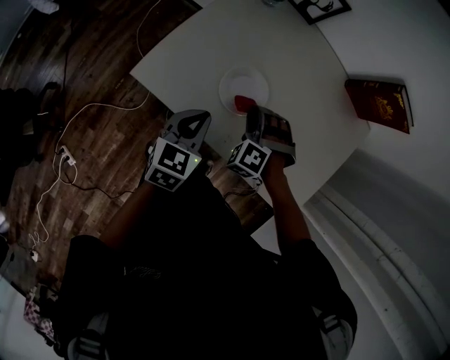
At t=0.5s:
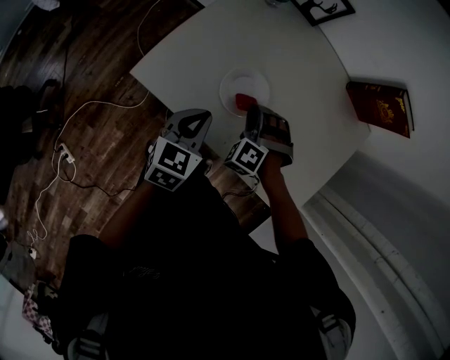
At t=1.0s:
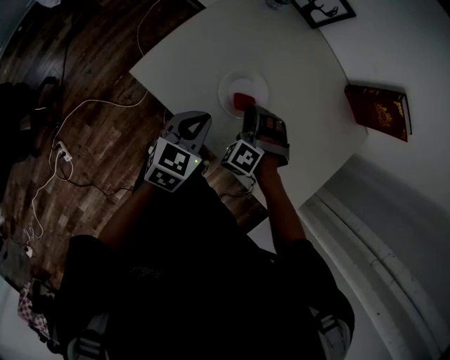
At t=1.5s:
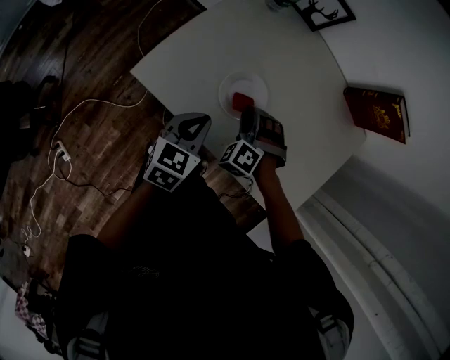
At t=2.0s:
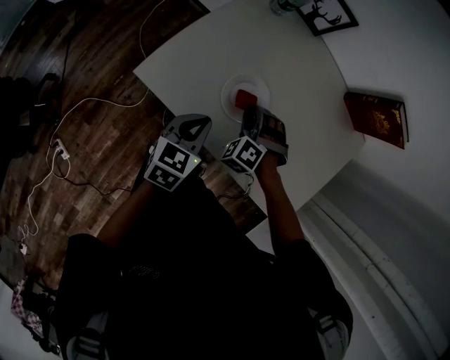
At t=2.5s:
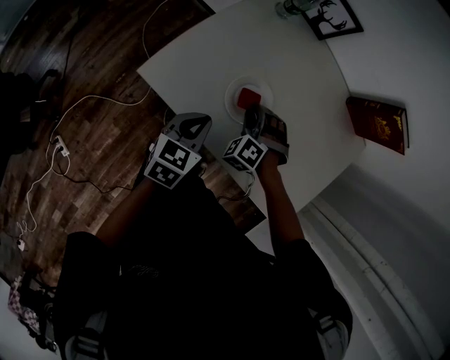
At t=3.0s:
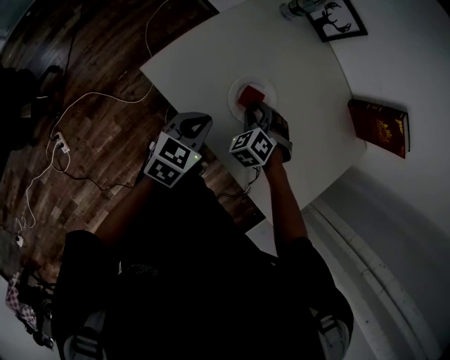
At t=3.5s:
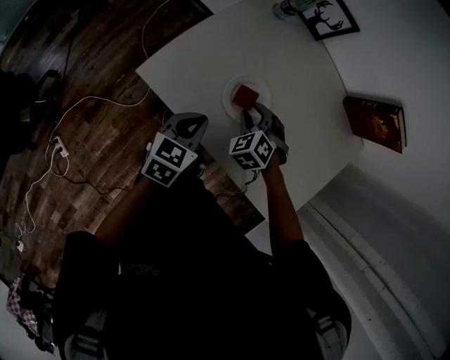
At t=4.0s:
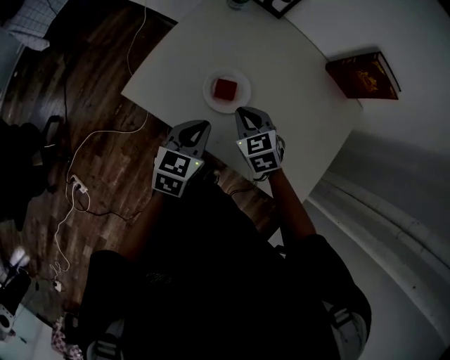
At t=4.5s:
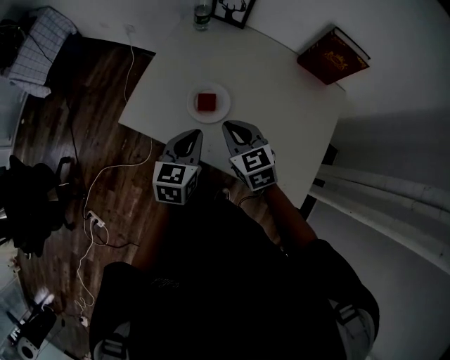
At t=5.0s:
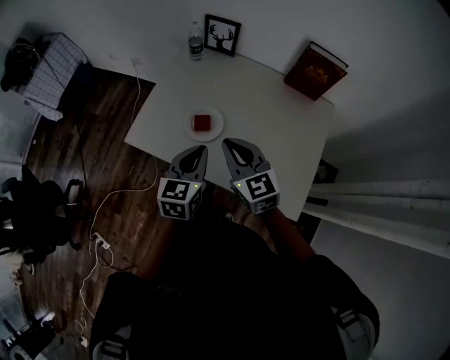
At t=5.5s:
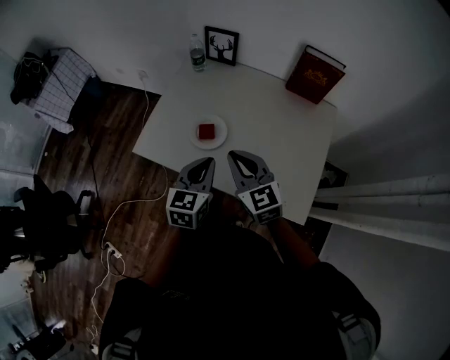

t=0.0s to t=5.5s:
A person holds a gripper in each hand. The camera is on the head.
t=0.0s to t=2.0s: The grippers move only a little.
t=2.0s to t=3.5s: The right gripper swivels approximately 20 degrees.
t=3.5s to t=5.5s: The left gripper moves upward, to the right and backward, some 20 cm. Meanwhile the right gripper goes approximately 25 cm upward and backward, tips its fingers upward by roughly 40 degrees, and closes up.

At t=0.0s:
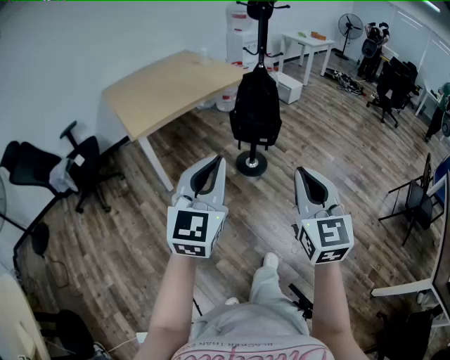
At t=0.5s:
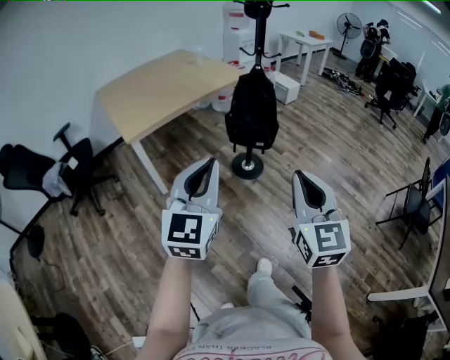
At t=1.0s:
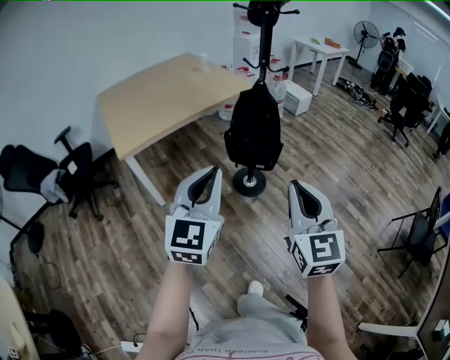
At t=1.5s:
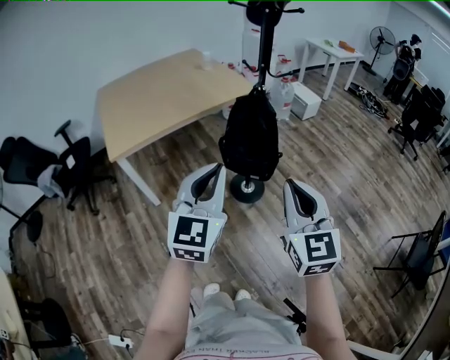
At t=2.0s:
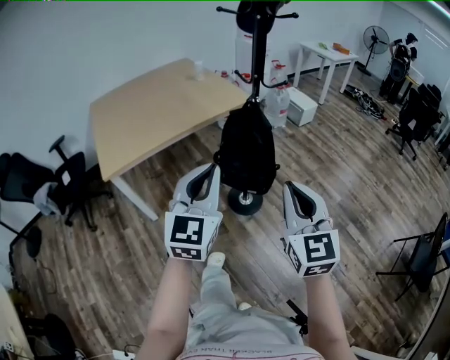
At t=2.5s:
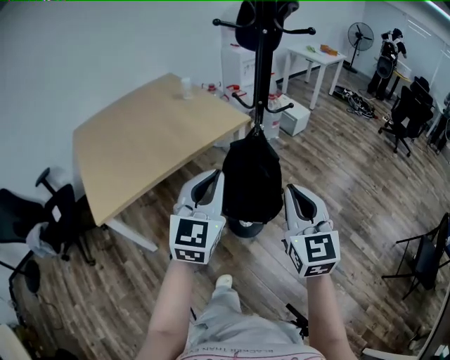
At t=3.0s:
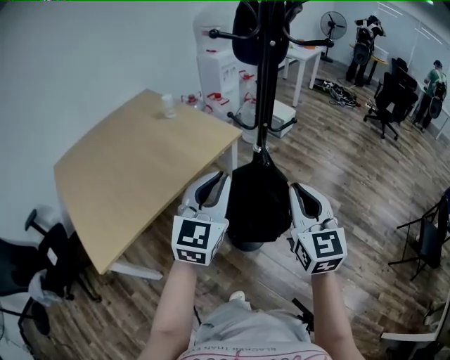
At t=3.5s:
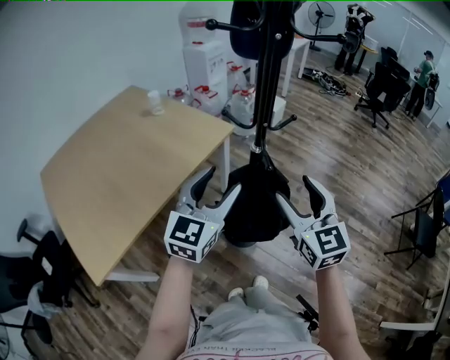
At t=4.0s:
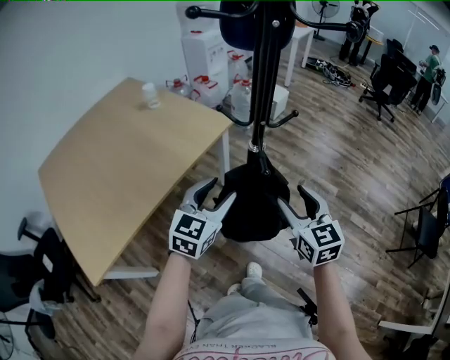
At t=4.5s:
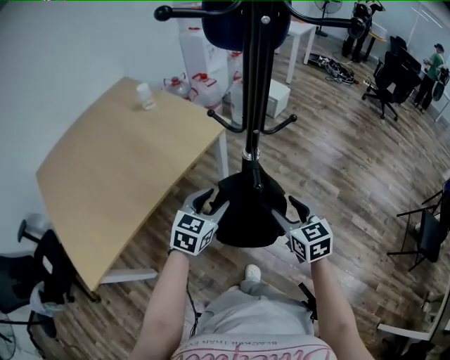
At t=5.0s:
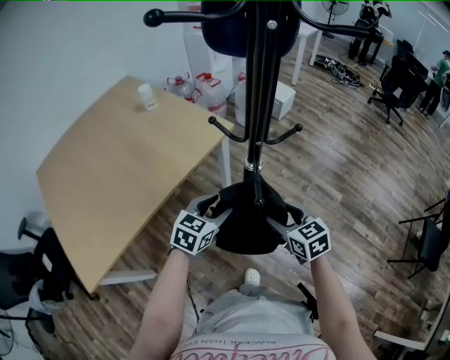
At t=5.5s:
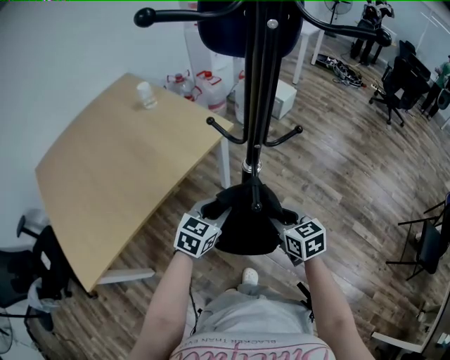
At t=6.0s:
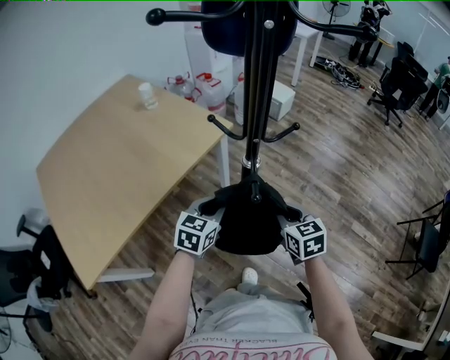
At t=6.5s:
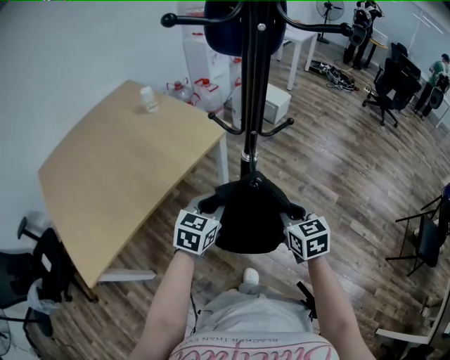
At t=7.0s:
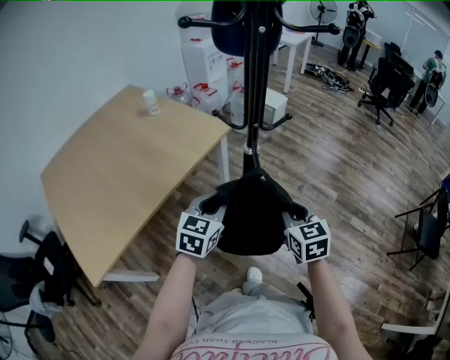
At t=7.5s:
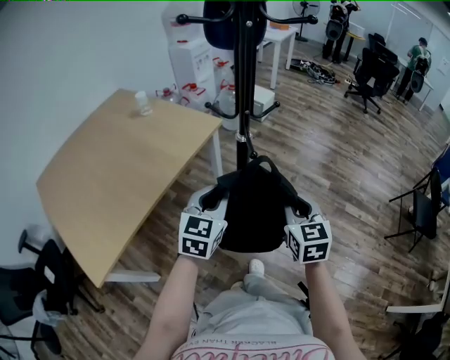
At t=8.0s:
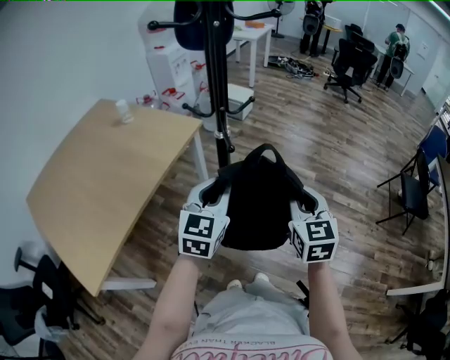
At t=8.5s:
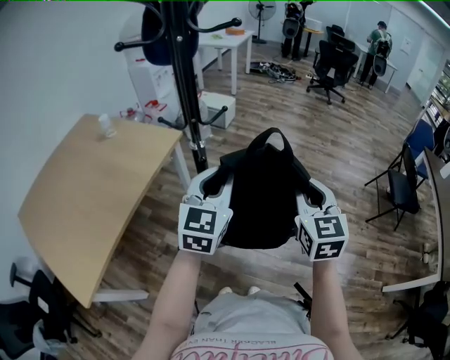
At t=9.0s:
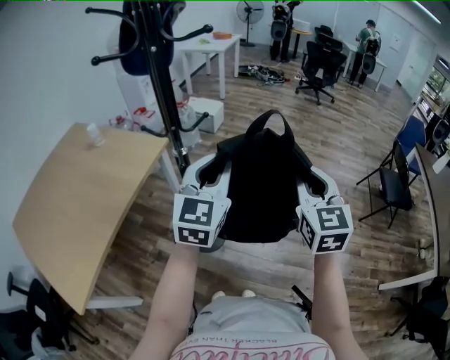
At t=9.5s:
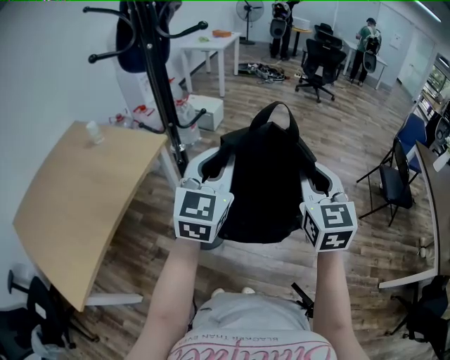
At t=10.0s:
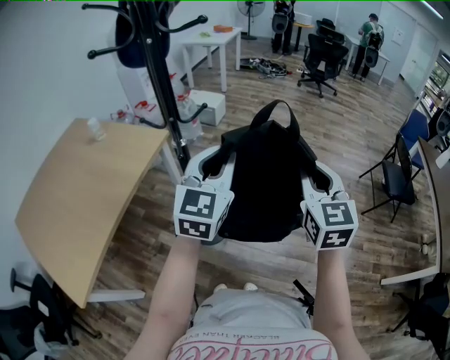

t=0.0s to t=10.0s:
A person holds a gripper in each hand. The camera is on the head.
t=0.0s to t=2.0s: The two grippers go approximately 30 cm forward.
t=2.0s to t=4.0s: Both grippers travel together forward, about 30 cm. The right gripper turns by about 20 degrees, and opens up; the left gripper rotates roughly 40 degrees, and opens its fingers.
t=4.0s to t=6.0s: The two grippers go about 10 cm downward and forward. The right gripper closes up, while the left gripper closes.
t=6.0s to t=8.0s: The left gripper moves upward, backward and to the right, approximately 20 cm, and swivels some 20 degrees, while the right gripper heads backward, upward and to the right, covering approximately 20 cm, and changes its angle by approximately 30 degrees.
t=8.0s to t=10.0s: Both grippers move to the right and upward, roughly 15 cm.

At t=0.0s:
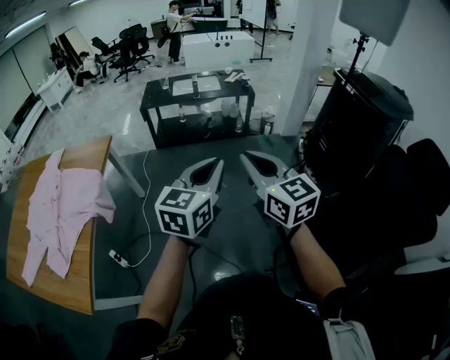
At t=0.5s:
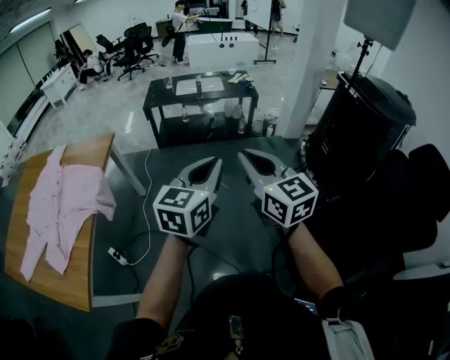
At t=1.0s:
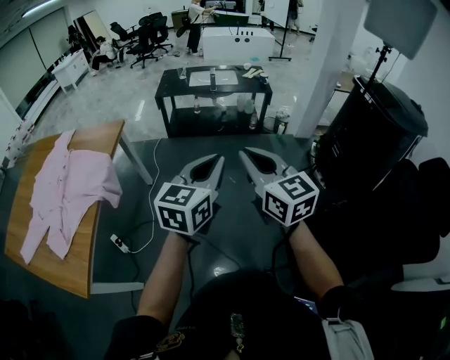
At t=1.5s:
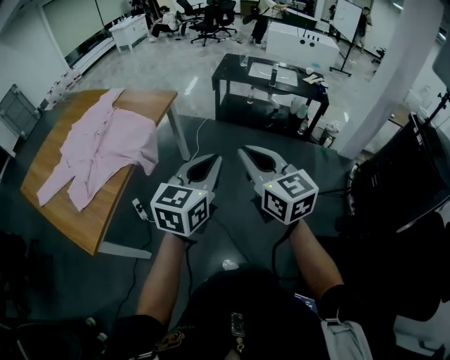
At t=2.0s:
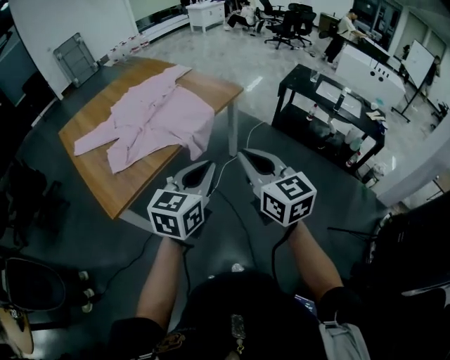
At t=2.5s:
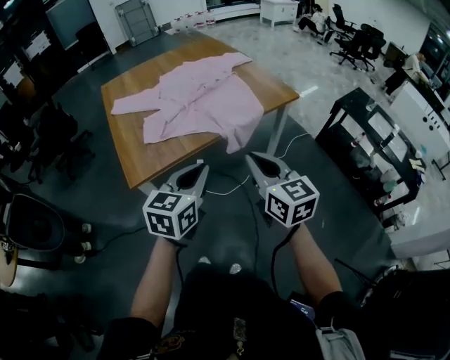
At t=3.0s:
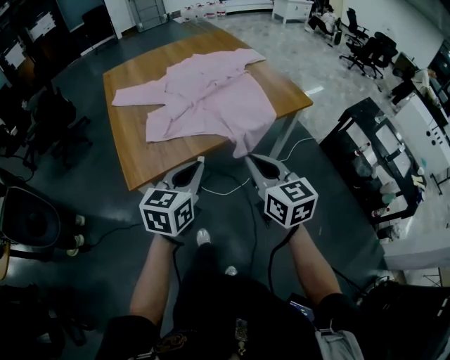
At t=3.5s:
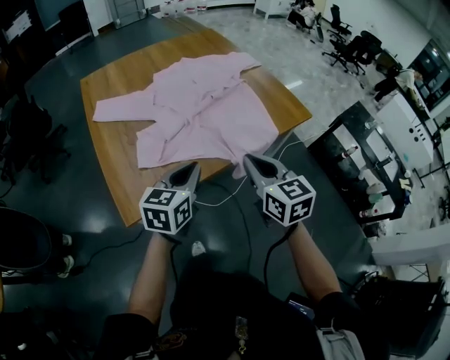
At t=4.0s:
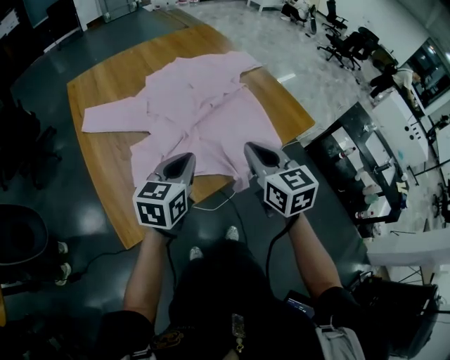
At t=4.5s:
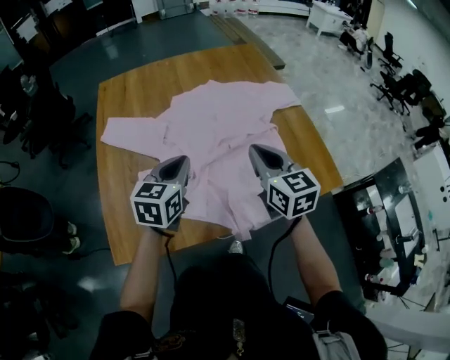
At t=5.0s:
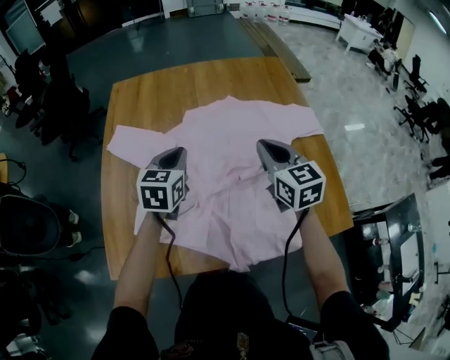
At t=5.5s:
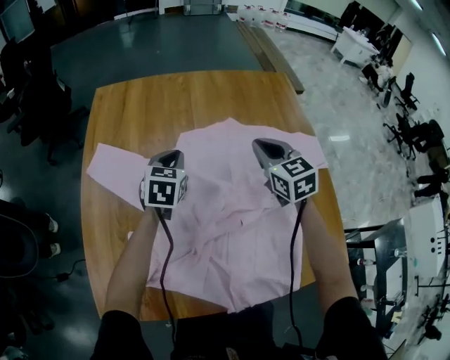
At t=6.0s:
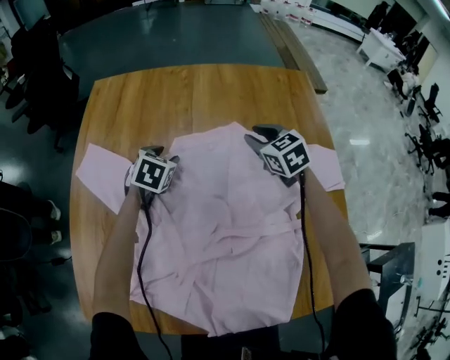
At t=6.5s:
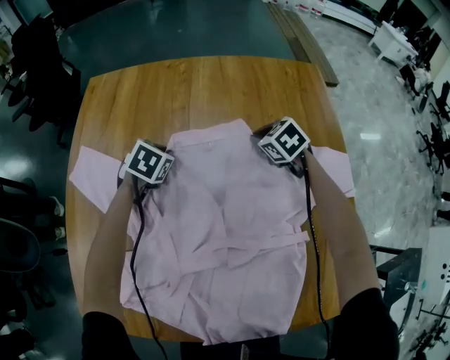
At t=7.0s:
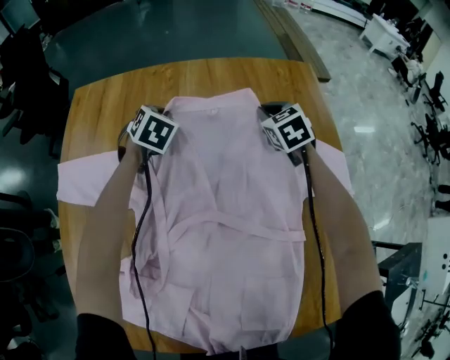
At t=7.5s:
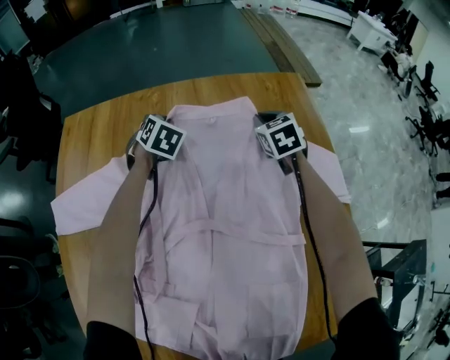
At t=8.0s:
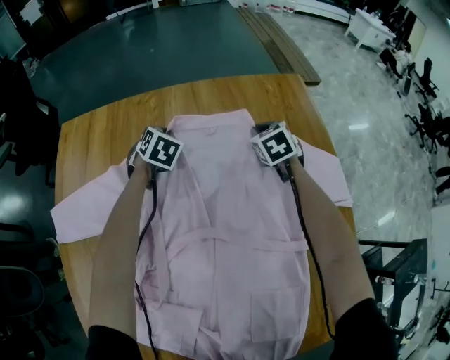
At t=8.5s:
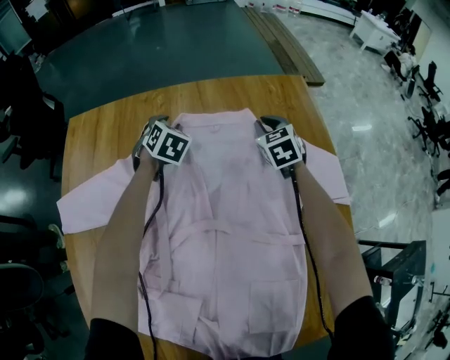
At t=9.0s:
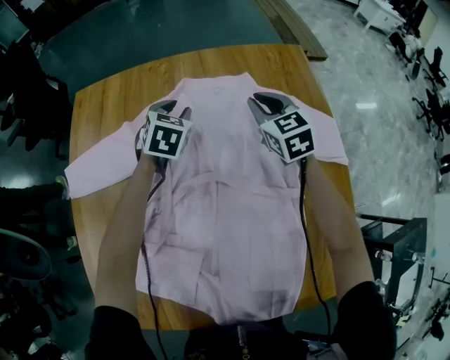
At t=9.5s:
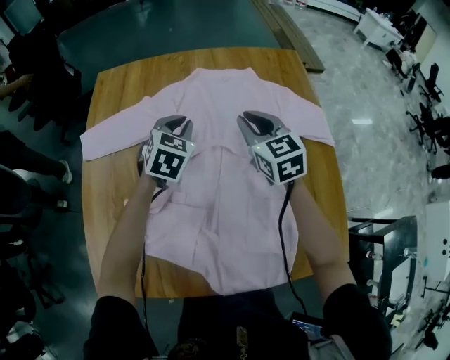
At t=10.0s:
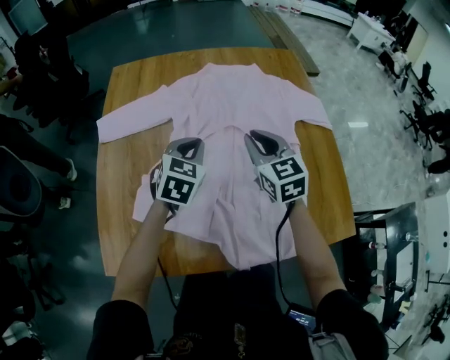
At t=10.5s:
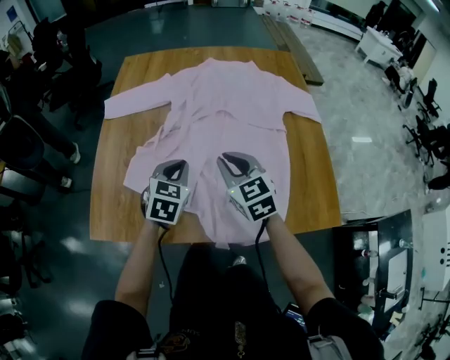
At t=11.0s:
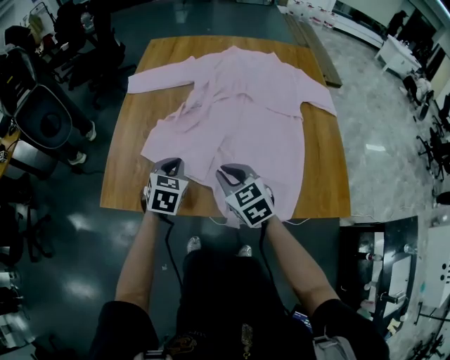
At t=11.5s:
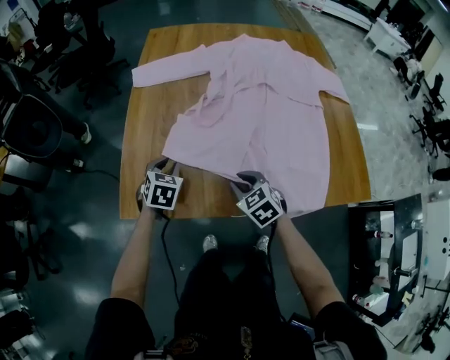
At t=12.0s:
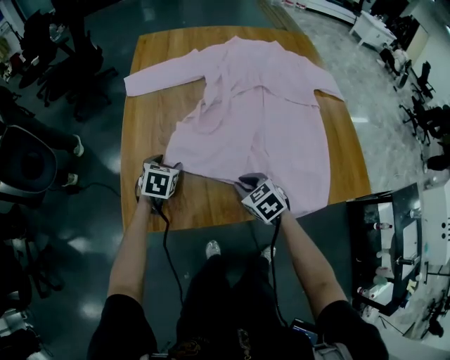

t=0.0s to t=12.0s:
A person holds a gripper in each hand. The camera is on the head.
t=0.0s to t=2.0s: The right gripper shifts by roughly 30 cm, and swivels about 40 degrees, while the left gripper moves some 30 cm, and turns by approximately 50 degrees.
t=2.0s to t=4.0s: Both grippers are carried forward and to the left, approximately 40 cm. The left gripper swivels about 20 degrees.
t=4.0s to t=6.0s: Both grippers are carried approximately 50 cm. The left gripper points its fingers some 30 degrees further downward, and opens up. Meanwhile the right gripper rotates roughly 50 degrees, and opens up.
t=6.0s to t=8.0s: The left gripper moves forward and to the right, approximately 25 cm, and closes its fingers, while the right gripper heads forward, to the right and downward, covering some 20 cm, rotates approximately 20 degrees, and closes its fingers.
t=8.0s to t=10.0s: The two grippers travel together, backward, about 40 cm. The right gripper moves upward, some 20 cm, and turns by approximately 30 degrees. Meanwhile the left gripper changes its angle by about 20 degrees, and opens, then closes again.
t=10.0s to t=12.0s: The left gripper travels to the left, downward and backward by about 35 cm, rotates some 20 degrees, and opens up. The right gripper heads backward, downward and to the left, covering approximately 35 cm, and swivels approximately 30 degrees.
